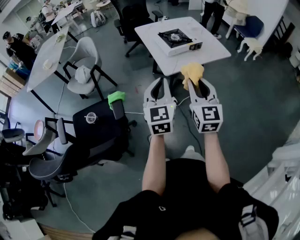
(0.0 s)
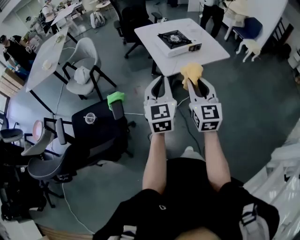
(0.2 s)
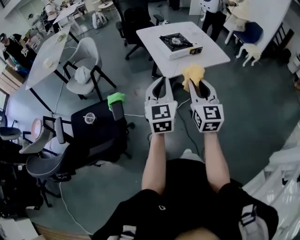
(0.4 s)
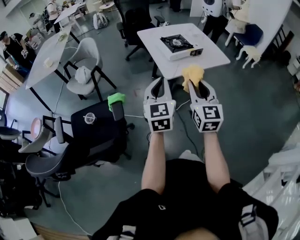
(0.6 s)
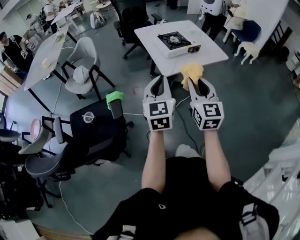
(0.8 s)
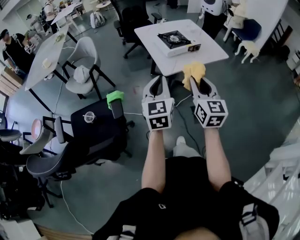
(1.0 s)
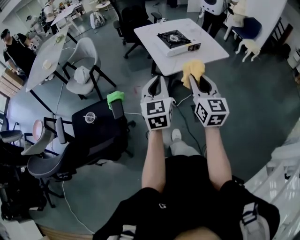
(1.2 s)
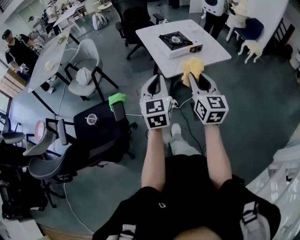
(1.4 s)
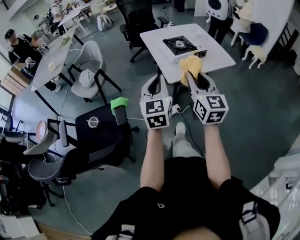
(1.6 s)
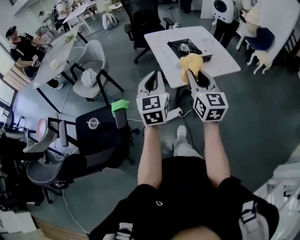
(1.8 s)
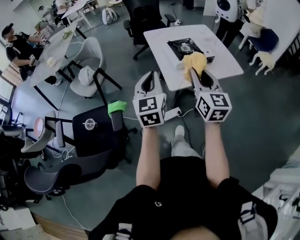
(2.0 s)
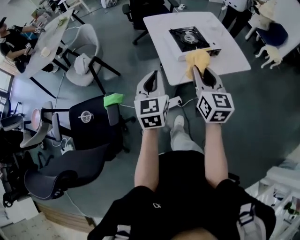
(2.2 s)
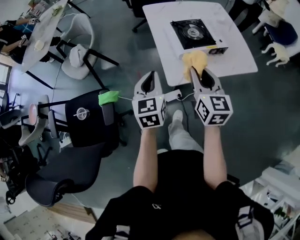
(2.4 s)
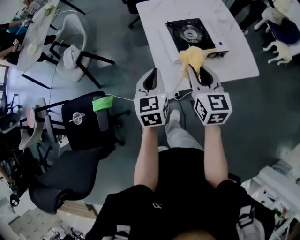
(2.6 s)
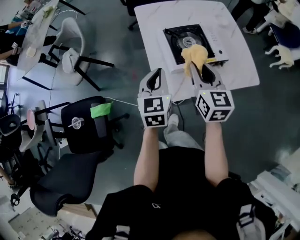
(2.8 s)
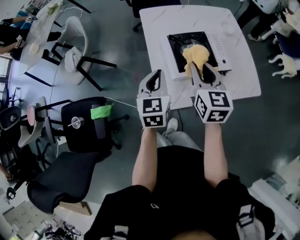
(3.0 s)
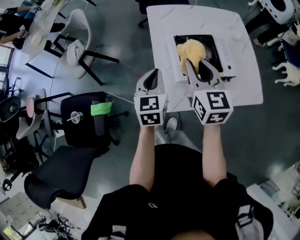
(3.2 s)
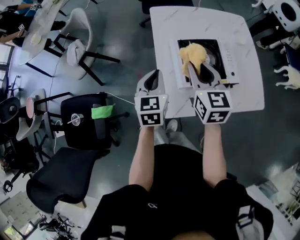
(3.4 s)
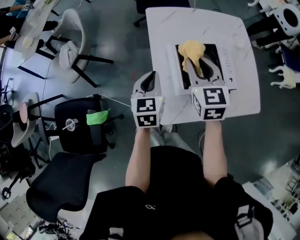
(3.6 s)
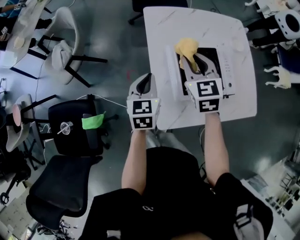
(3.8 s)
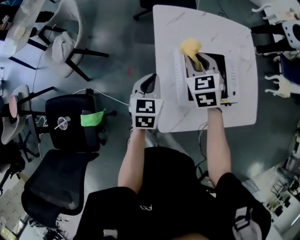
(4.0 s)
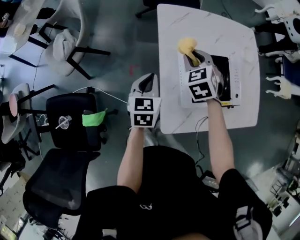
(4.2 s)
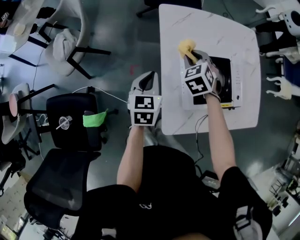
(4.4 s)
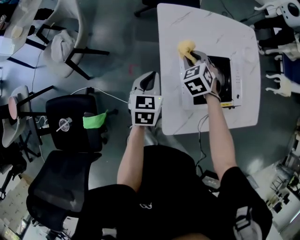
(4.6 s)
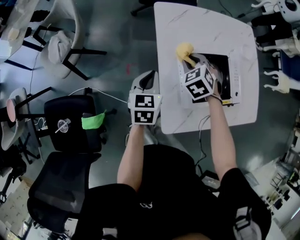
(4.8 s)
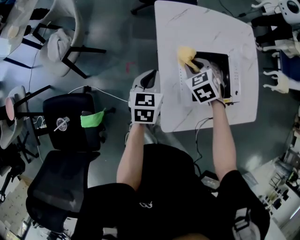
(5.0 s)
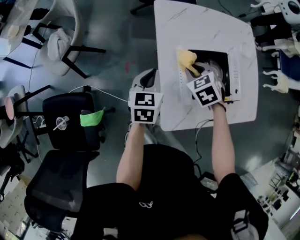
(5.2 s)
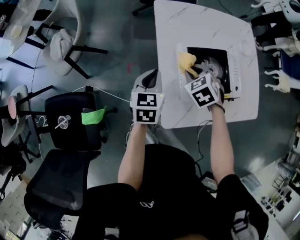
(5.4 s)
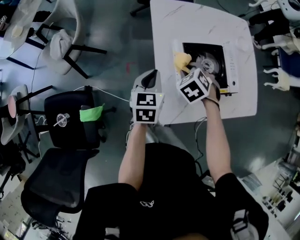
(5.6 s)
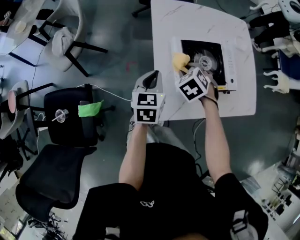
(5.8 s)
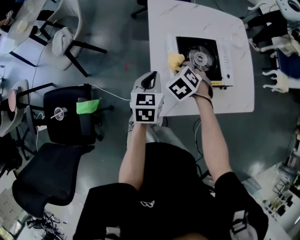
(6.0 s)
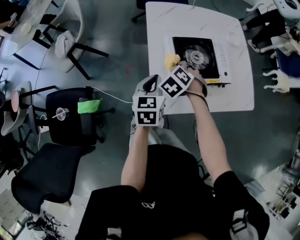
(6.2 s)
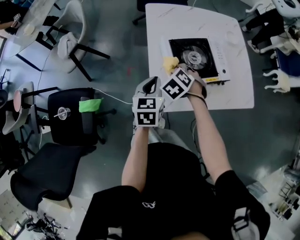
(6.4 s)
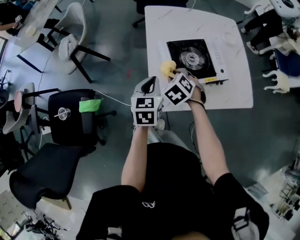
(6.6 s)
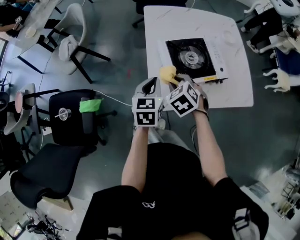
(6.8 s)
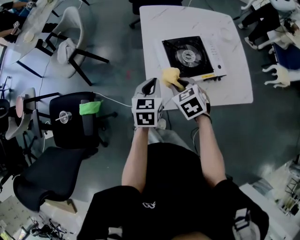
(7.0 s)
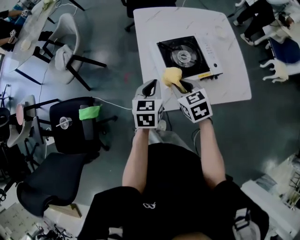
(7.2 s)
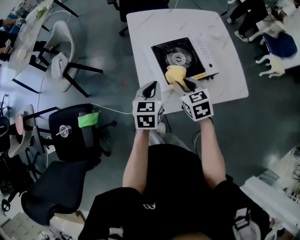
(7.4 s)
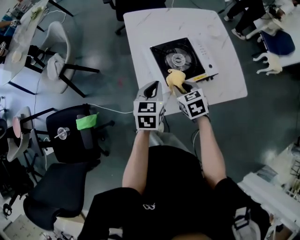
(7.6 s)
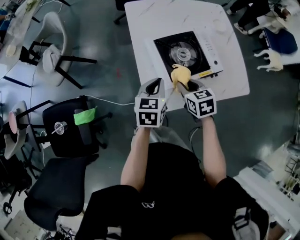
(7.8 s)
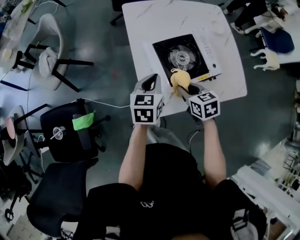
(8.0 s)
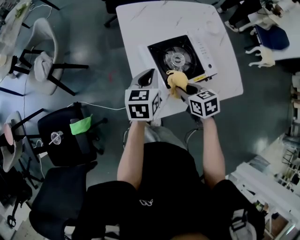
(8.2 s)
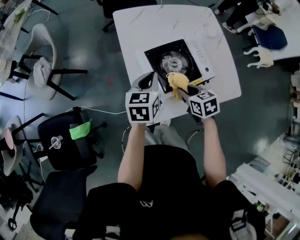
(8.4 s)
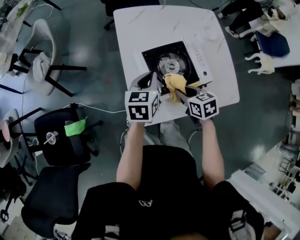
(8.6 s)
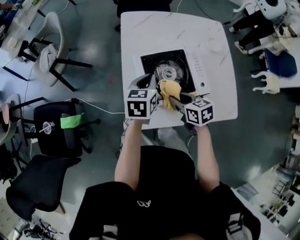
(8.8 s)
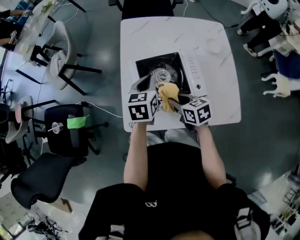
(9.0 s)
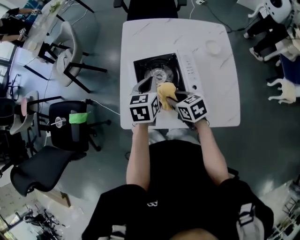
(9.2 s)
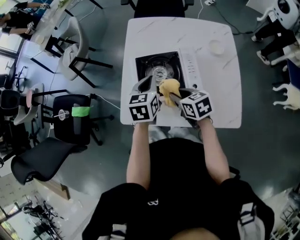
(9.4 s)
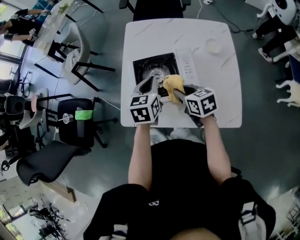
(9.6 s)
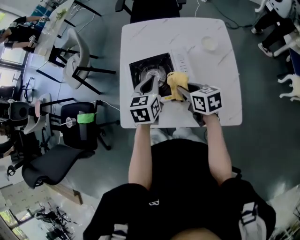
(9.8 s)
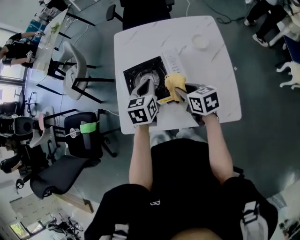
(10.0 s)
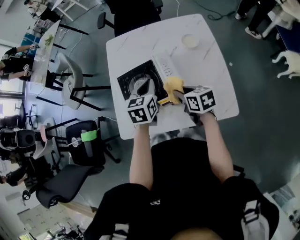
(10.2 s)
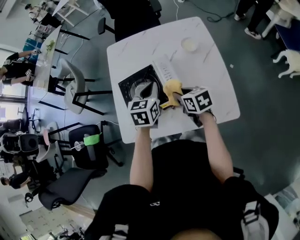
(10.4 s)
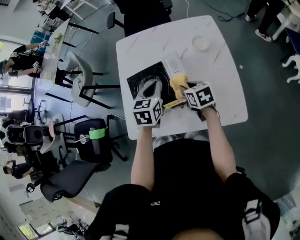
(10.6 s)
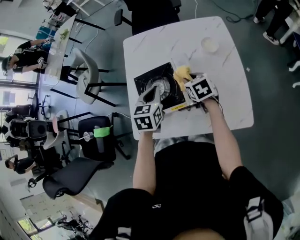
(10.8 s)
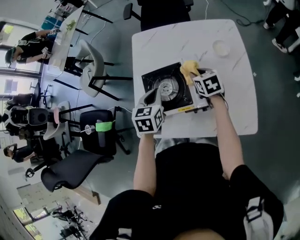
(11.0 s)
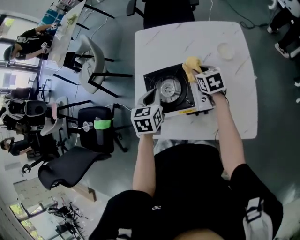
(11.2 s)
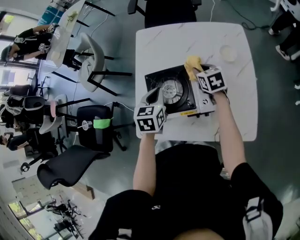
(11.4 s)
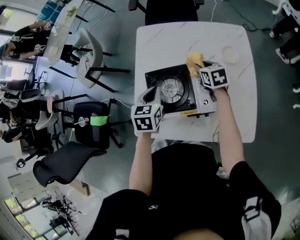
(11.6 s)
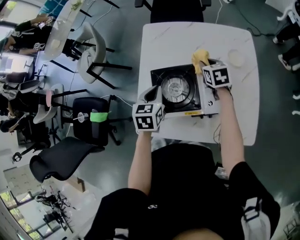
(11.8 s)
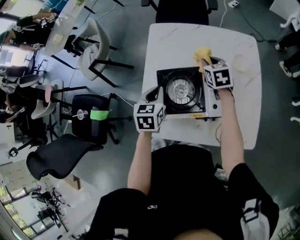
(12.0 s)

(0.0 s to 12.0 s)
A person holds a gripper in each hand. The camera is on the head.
0.0 s - 1.6 s: The right gripper moves forward, about 5 cm. Meanwhile the left gripper moves some 5 cm.
1.6 s - 3.0 s: Both grippers travel together forward, some 40 cm. The right gripper changes its angle by approximately 20 degrees. The left gripper changes its angle by some 20 degrees.
3.0 s - 4.4 s: The grippers both shift forward, downward and to the left by some 25 cm. The right gripper points its fingers some 30 degrees further downward.
4.4 s - 6.0 s: The left gripper shifts some 10 cm backward and to the right; the right gripper shifts about 15 cm backward.
6.0 s - 7.6 s: The right gripper heads to the right and backward, covering roughly 10 cm, and turns by roughly 40 degrees. The left gripper is displaced to the right by about 10 cm.
7.6 s - 9.0 s: The right gripper goes some 10 cm to the right, and swivels about 30 degrees. Meanwhile the left gripper is displaced forward and to the right by approximately 15 cm.
9.0 s - 10.4 s: The grippers both shift to the right by roughly 15 cm.
10.4 s - 12.0 s: The left gripper is displaced to the left by about 15 cm. Meanwhile the right gripper travels forward by about 25 cm, and swivels approximately 30 degrees.

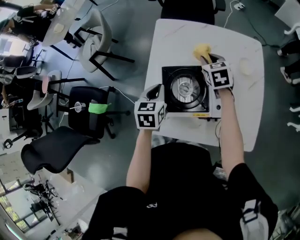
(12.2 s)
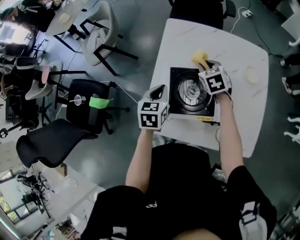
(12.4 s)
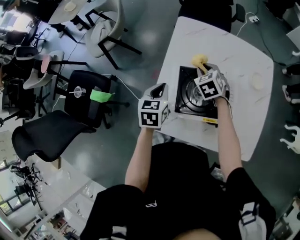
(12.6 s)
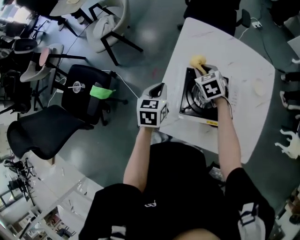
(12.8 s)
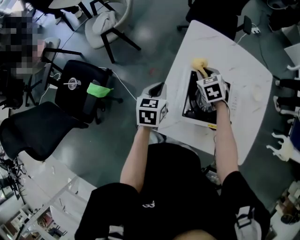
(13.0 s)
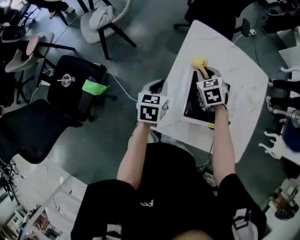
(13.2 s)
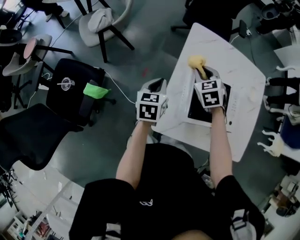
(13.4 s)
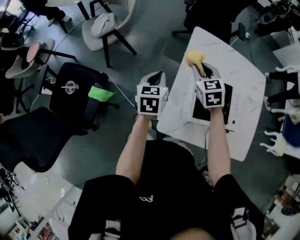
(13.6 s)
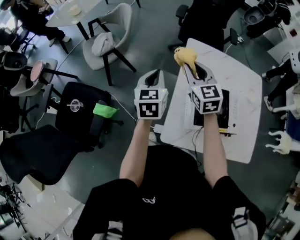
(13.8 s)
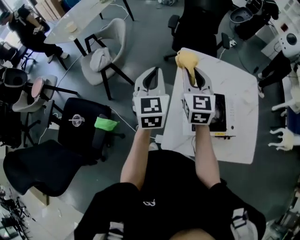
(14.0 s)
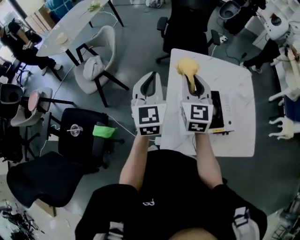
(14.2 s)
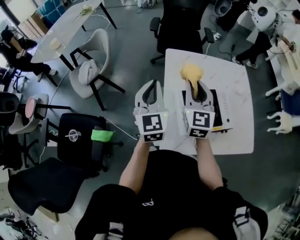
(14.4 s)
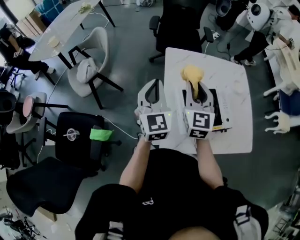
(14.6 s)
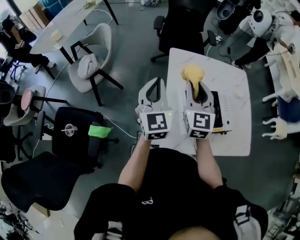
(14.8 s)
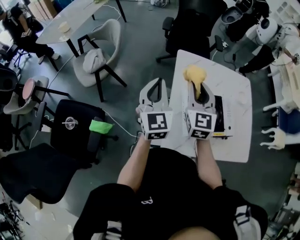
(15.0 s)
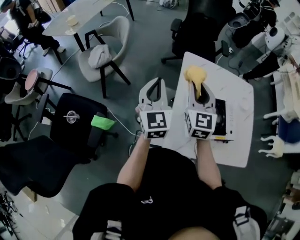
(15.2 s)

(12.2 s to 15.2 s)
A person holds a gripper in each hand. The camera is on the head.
12.2 s - 13.8 s: The two grippers go some 30 cm to the left. The right gripper swivels roughly 20 degrees.
13.8 s - 15.2 s: The left gripper heads upward, covering approximately 5 cm, and swivels approximately 20 degrees, while the right gripper reaches roughly 10 cm to the right, then returns, and rotates about 20 degrees.

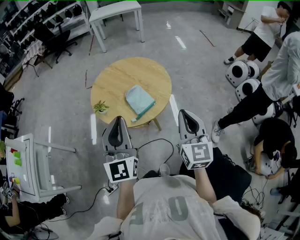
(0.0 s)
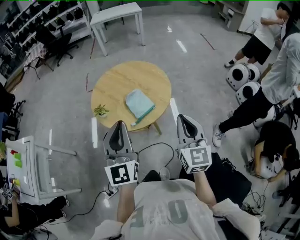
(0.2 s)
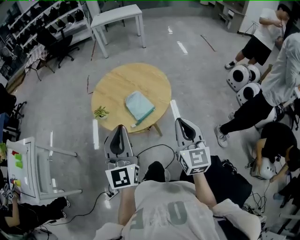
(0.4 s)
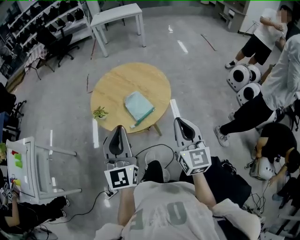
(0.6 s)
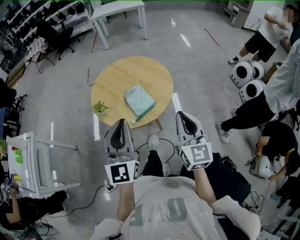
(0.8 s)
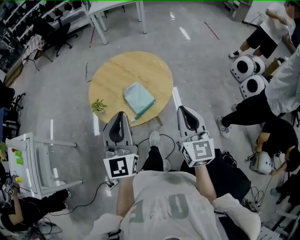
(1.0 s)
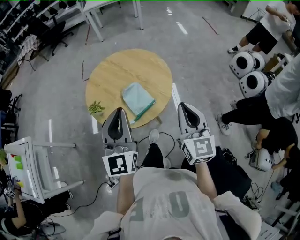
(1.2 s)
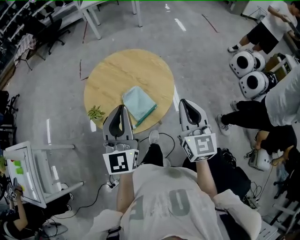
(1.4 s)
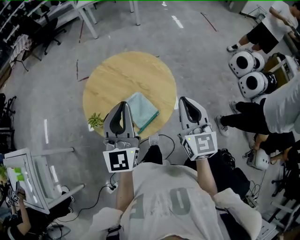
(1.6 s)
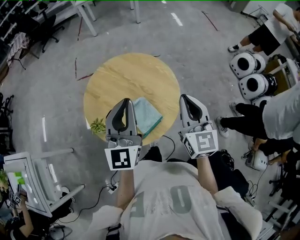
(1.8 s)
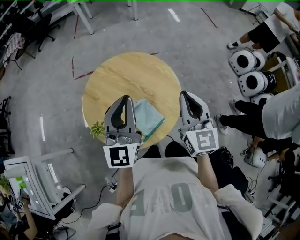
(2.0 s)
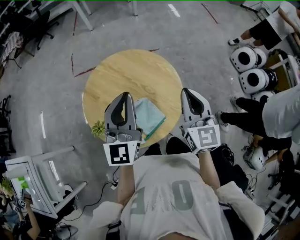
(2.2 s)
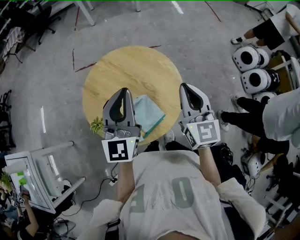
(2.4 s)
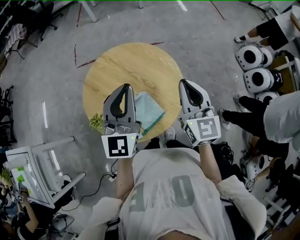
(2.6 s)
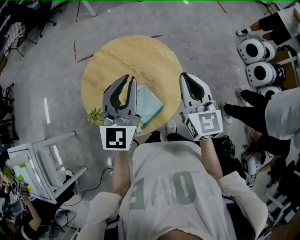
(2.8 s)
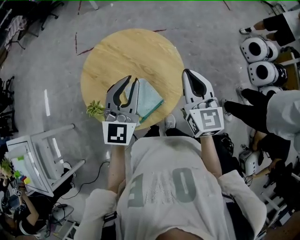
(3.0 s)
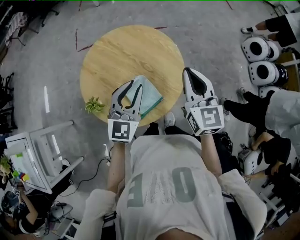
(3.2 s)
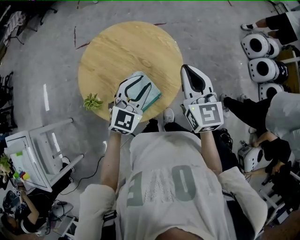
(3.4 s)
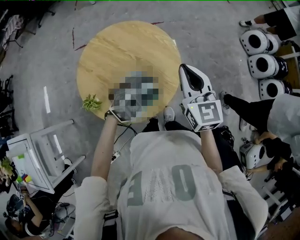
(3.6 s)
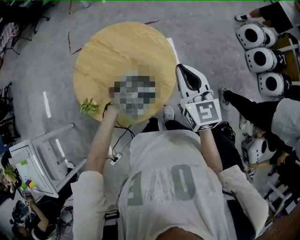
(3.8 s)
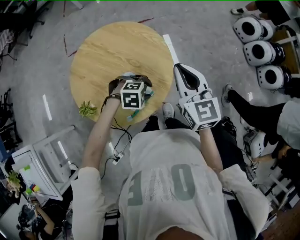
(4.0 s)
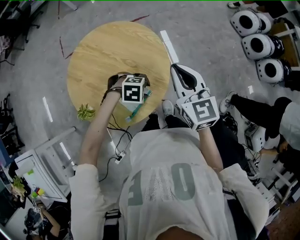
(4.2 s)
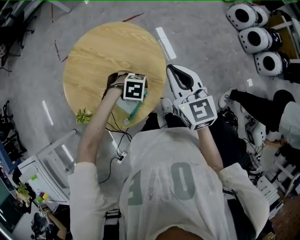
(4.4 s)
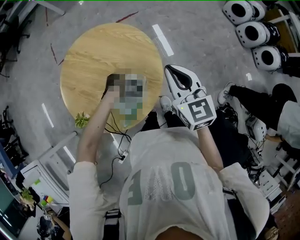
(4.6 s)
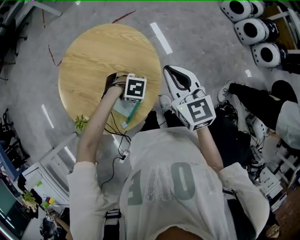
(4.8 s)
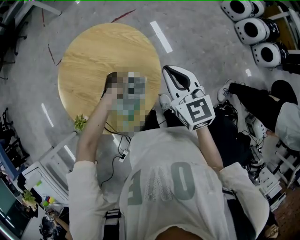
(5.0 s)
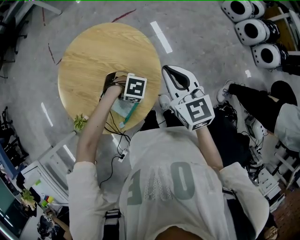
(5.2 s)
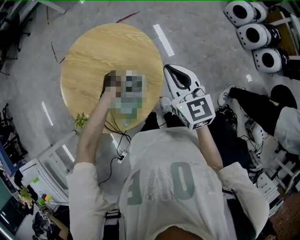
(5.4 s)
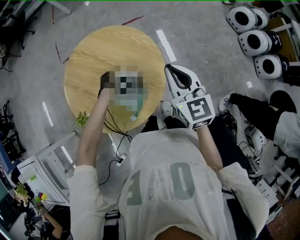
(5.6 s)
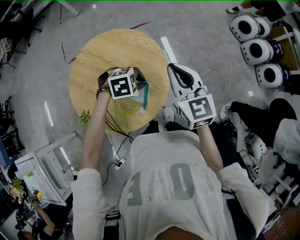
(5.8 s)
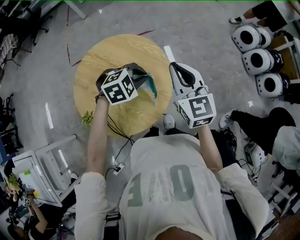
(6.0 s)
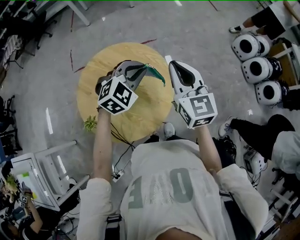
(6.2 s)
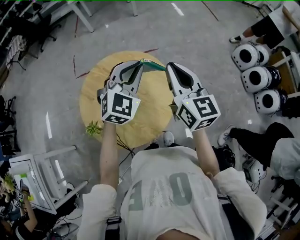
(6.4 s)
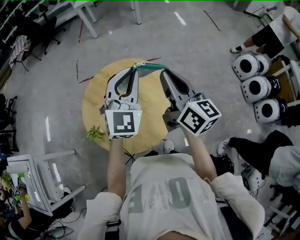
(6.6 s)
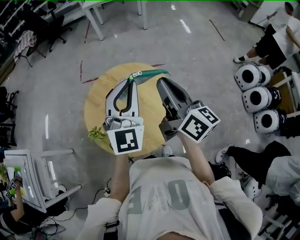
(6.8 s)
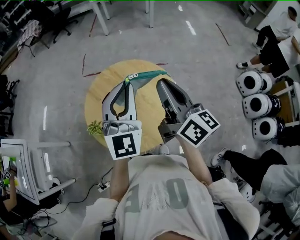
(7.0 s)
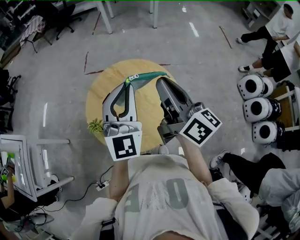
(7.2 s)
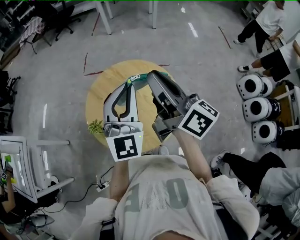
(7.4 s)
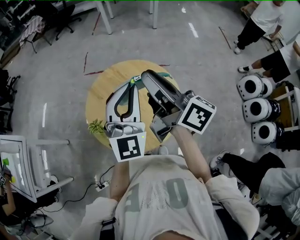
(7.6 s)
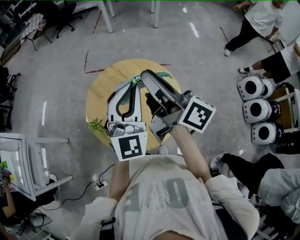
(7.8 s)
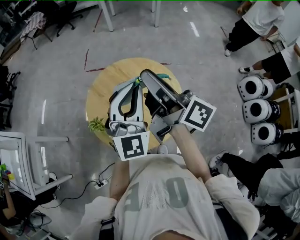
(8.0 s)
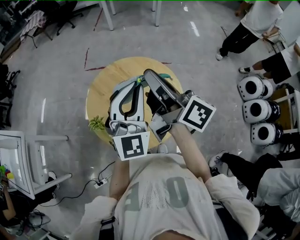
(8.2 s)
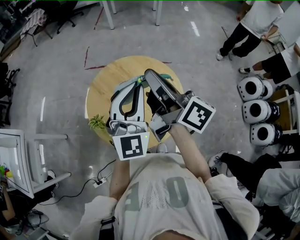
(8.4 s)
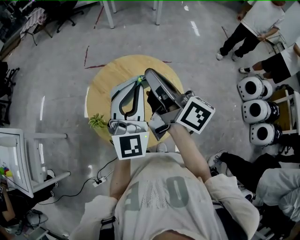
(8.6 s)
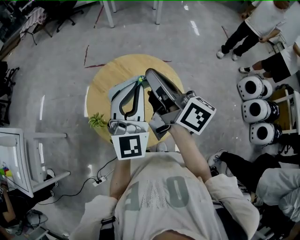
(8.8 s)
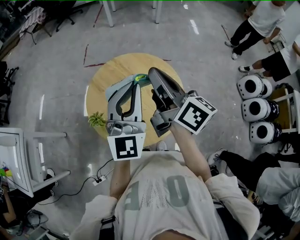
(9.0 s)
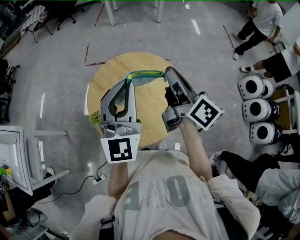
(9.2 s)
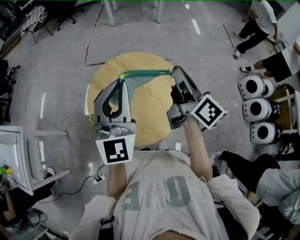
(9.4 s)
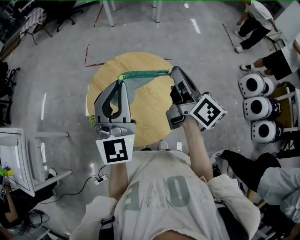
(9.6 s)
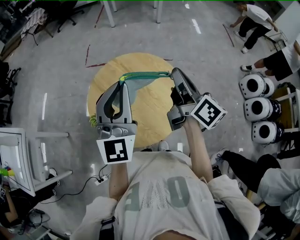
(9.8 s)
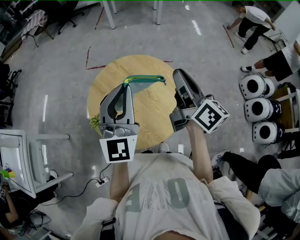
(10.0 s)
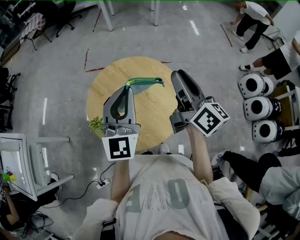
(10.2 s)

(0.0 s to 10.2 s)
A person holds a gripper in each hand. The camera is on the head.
0.0 s - 1.4 s: Both grippers move forward, roughly 15 cm.
1.4 s - 3.0 s: Both grippers move forward, roughly 15 cm.
3.0 s - 4.4 s: The right gripper travels downward by roughly 5 cm. The left gripper shifts some 30 cm downward, tips its fingers downward by about 70 degrees, and opens its fingers.
4.4 s - 5.8 s: The left gripper travels upward by approximately 10 cm, changes its angle by roughly 20 degrees, and closes.
5.8 s - 7.2 s: The right gripper shifts roughly 15 cm upward, and changes its angle by some 50 degrees; the left gripper is displaced upward by approximately 30 cm, and tips its fingers upward by about 70 degrees.
7.2 s - 8.8 s: The right gripper goes approximately 5 cm to the left.
8.8 s - 10.2 s: The right gripper heads to the right, covering roughly 10 cm, changes its angle by some 20 degrees, and opens its fingers.
